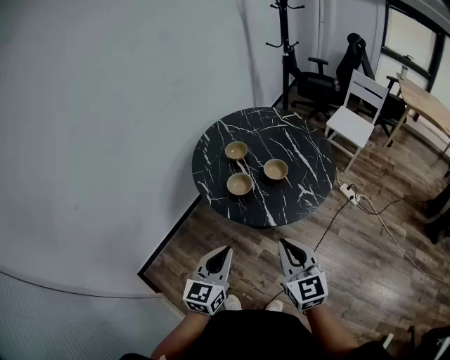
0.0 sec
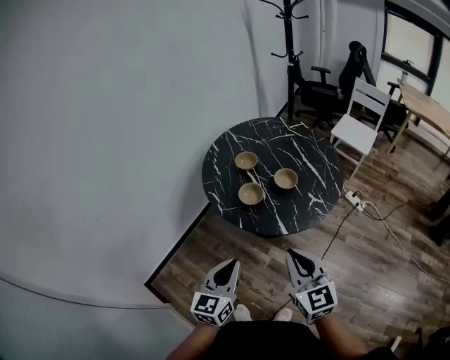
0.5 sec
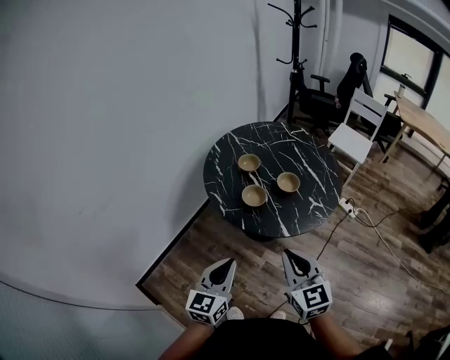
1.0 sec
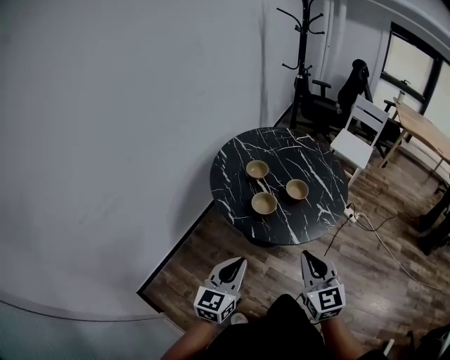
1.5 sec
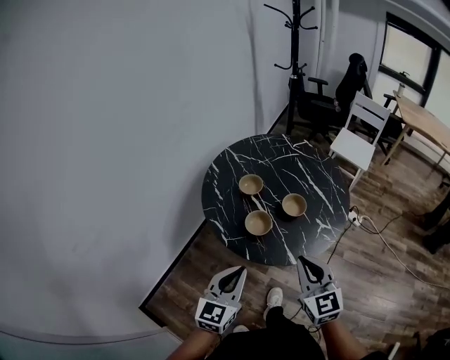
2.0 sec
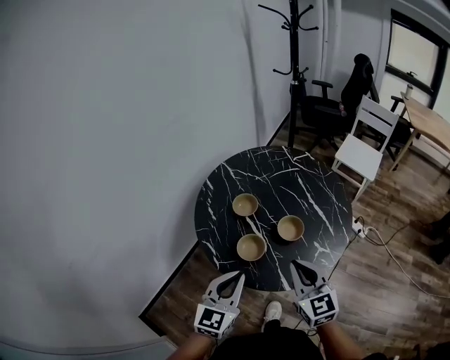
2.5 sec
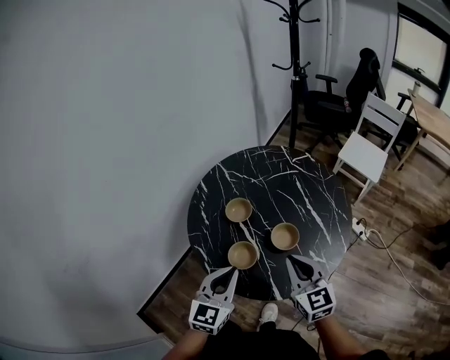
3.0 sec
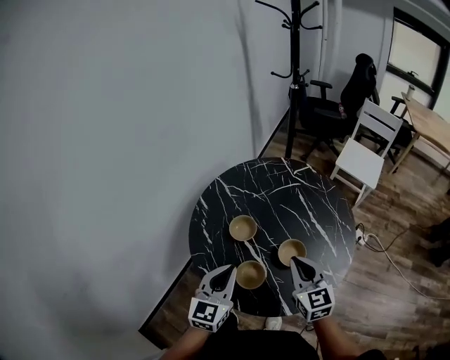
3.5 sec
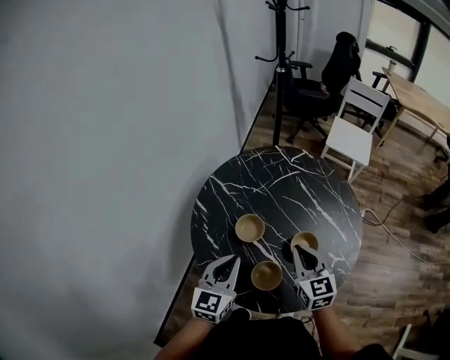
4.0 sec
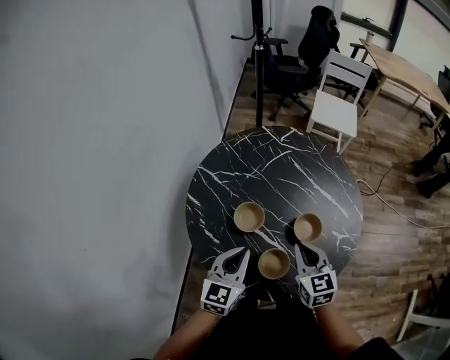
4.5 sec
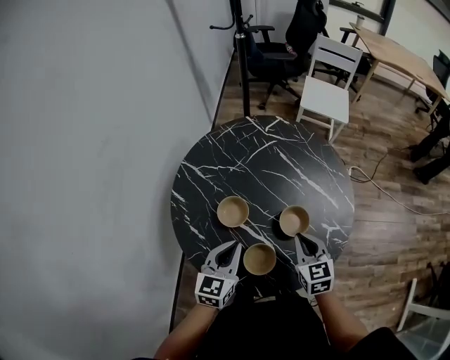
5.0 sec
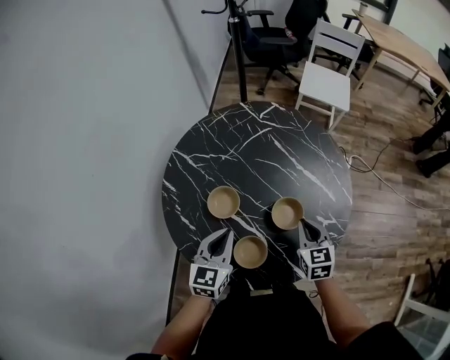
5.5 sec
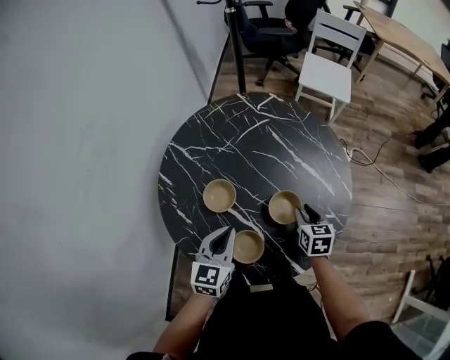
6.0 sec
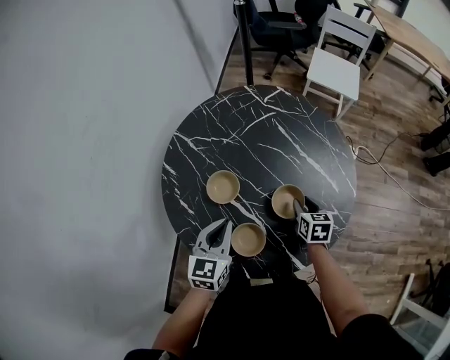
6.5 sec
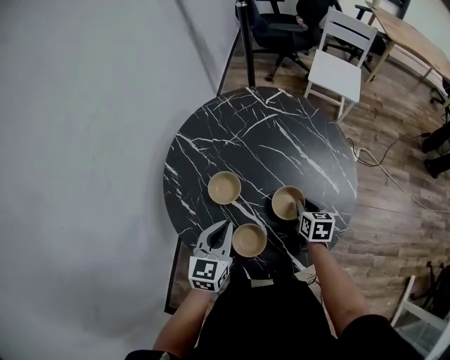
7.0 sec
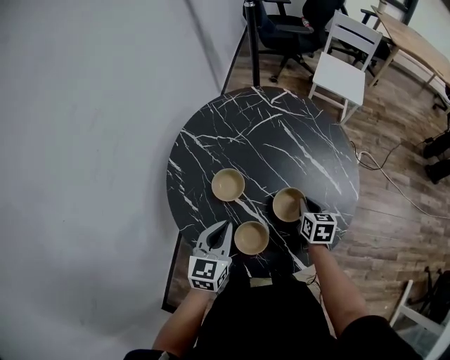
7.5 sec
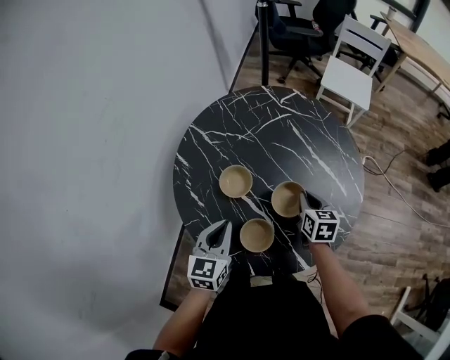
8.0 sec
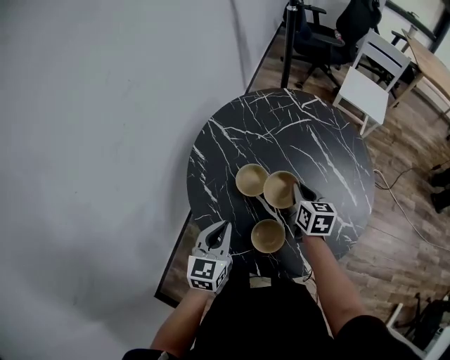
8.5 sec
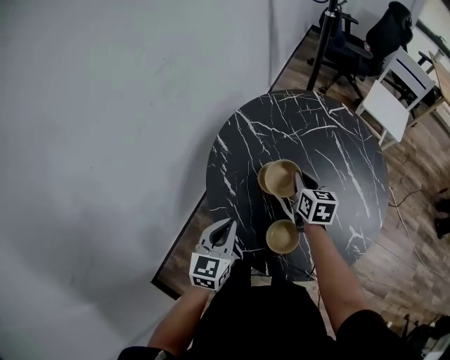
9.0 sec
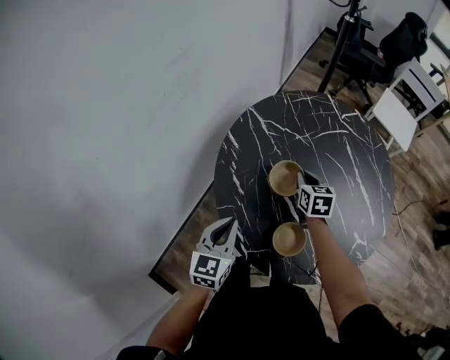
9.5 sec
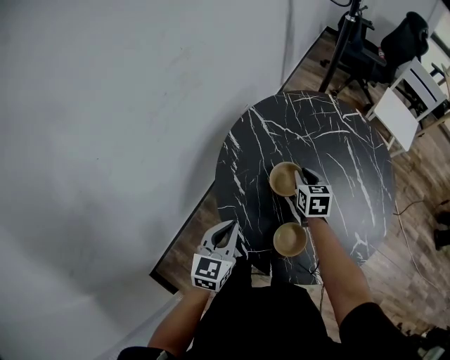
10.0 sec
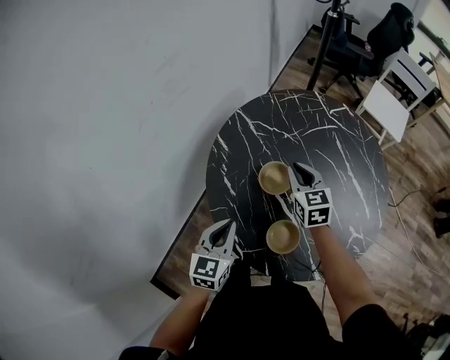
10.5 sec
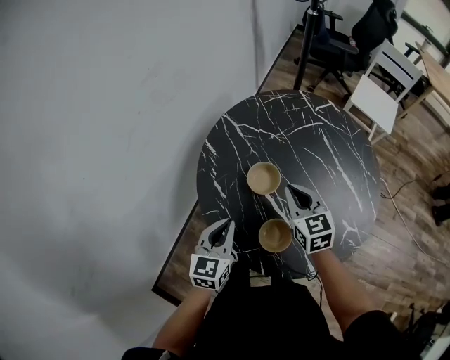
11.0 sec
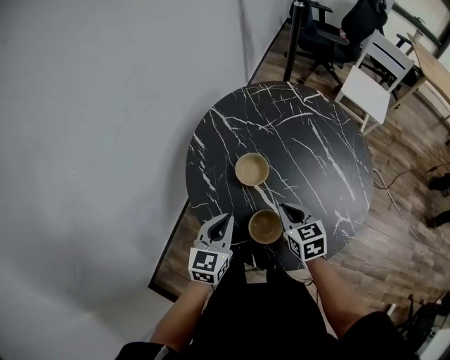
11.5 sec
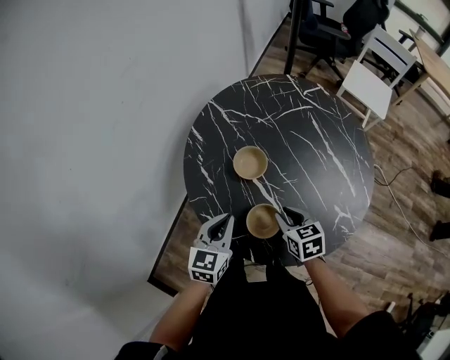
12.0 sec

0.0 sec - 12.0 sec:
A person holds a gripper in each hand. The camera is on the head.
0.0 sec - 2.0 sec: Both grippers move forward and to the left, about 10 cm.
2.0 sec - 4.0 sec: Both grippers move forward, some 30 cm.
4.0 sec - 6.0 sec: The right gripper travels downward and to the right by about 20 cm, rotates some 30 degrees, and opens; the left gripper is displaced downward and to the right by approximately 10 cm.
6.0 sec - 8.0 sec: The left gripper ends up about 5 cm from where it was, while the right gripper shifts by approximately 5 cm, and closes its fingers.
8.0 sec - 10.0 sec: The right gripper heads to the left and forward, covering approximately 20 cm, and swivels some 20 degrees; the left gripper shifts approximately 10 cm to the left.
10.0 sec - 12.0 sec: The right gripper is displaced backward by approximately 20 cm. Meanwhile the left gripper heads to the right, covering about 10 cm.

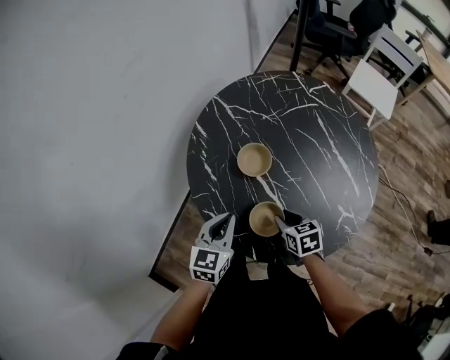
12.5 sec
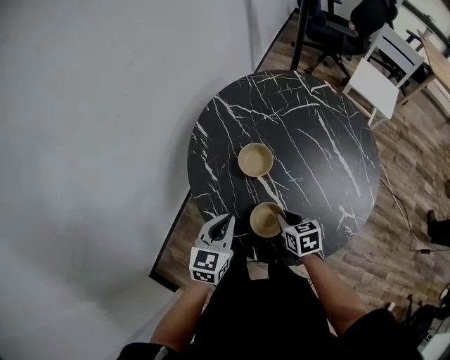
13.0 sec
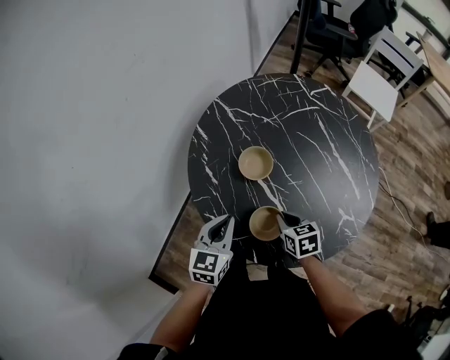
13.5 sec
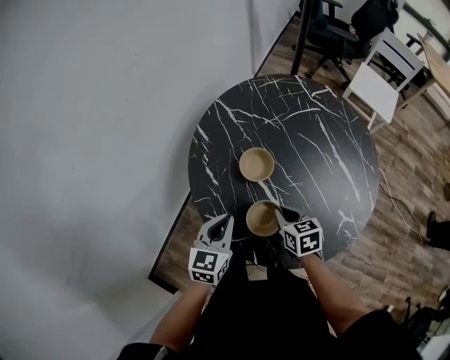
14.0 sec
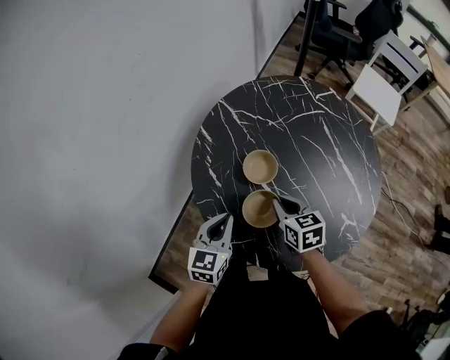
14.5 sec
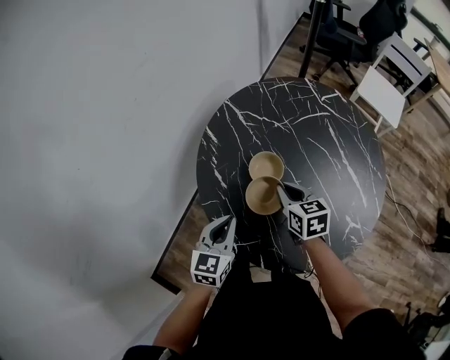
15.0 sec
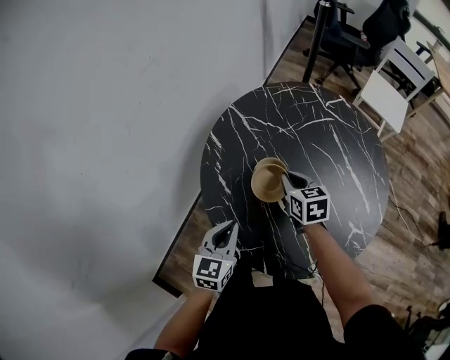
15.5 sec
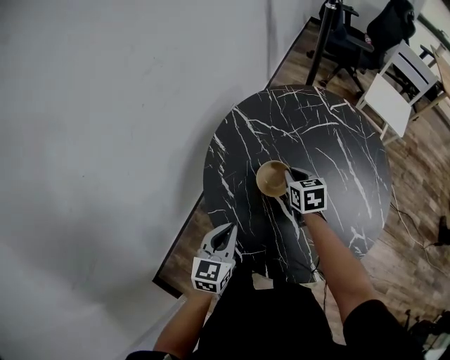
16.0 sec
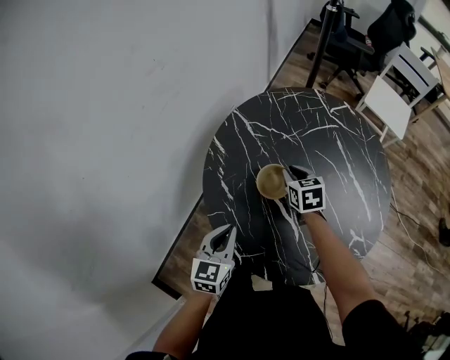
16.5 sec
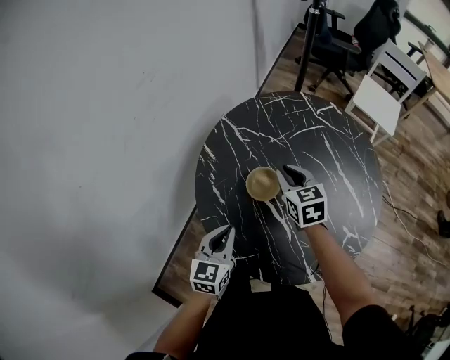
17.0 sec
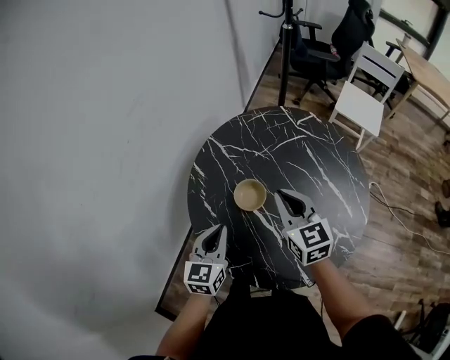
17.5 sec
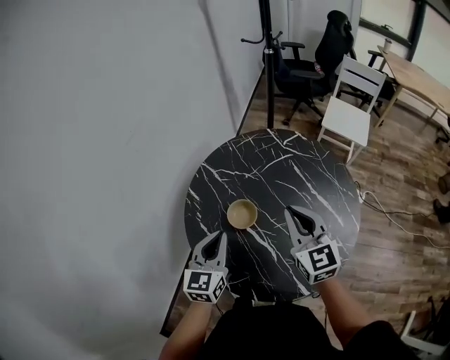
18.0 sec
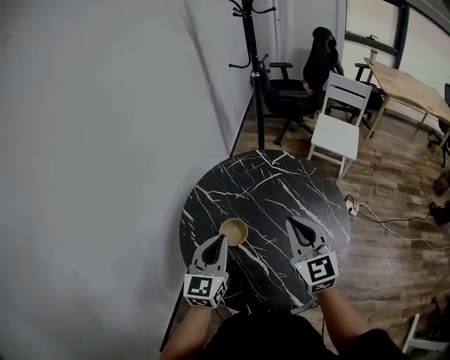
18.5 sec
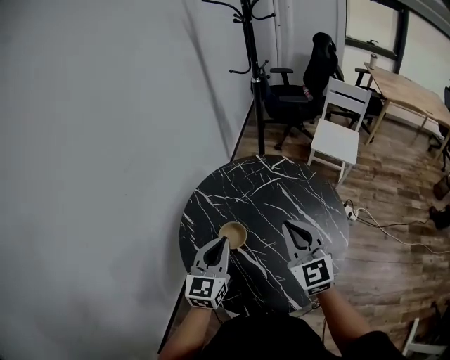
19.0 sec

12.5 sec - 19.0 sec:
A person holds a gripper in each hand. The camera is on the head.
12.5 sec - 14.5 sec: The right gripper shifts approximately 10 cm forward and upward, and closes.
14.5 sec - 17.0 sec: The right gripper heads forward and upward, covering roughly 15 cm.
17.0 sec - 19.0 sec: The right gripper is displaced upward, to the right and backward by roughly 25 cm, and changes its angle by some 30 degrees. Meanwhile the left gripper moves upward, to the right and forward, some 20 cm, and swivels roughly 20 degrees.

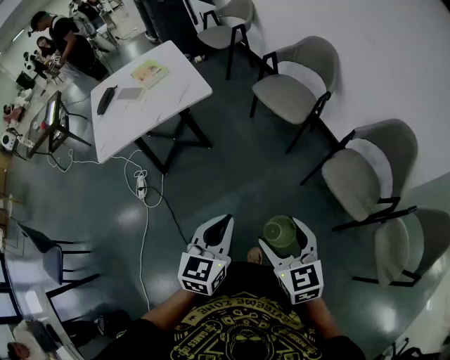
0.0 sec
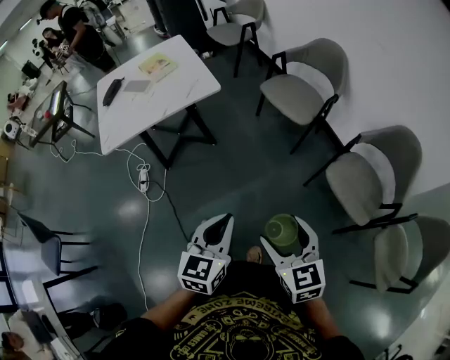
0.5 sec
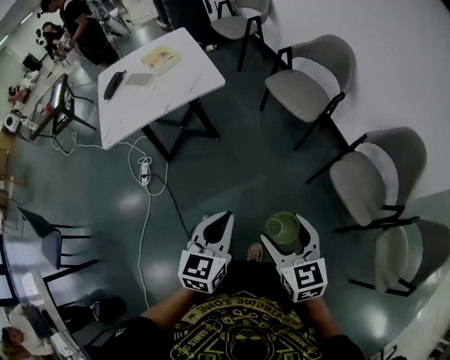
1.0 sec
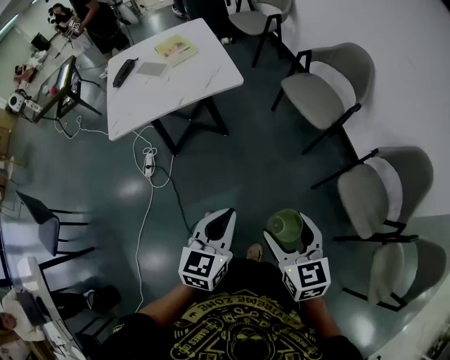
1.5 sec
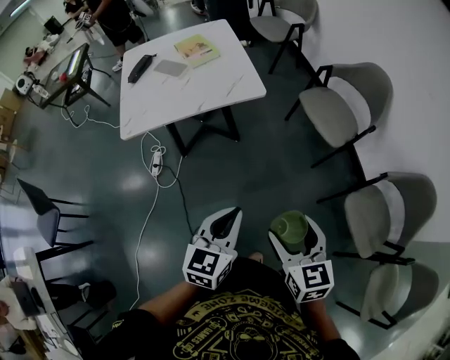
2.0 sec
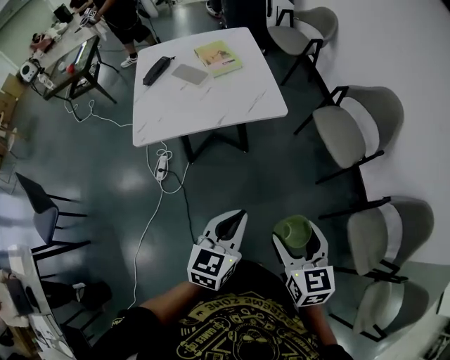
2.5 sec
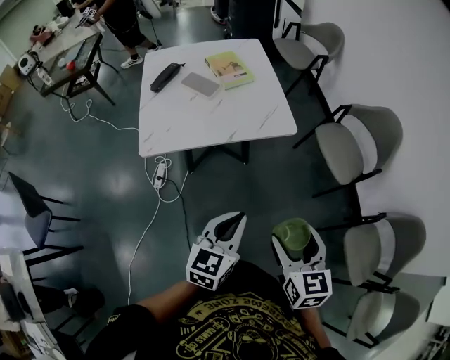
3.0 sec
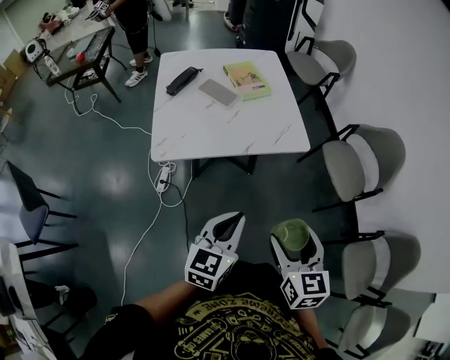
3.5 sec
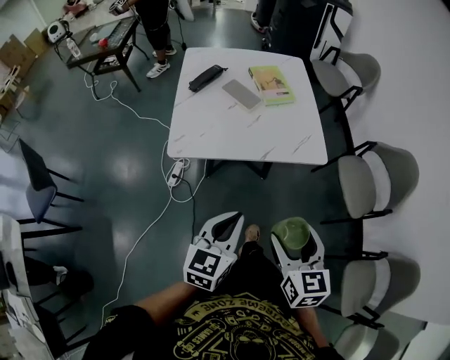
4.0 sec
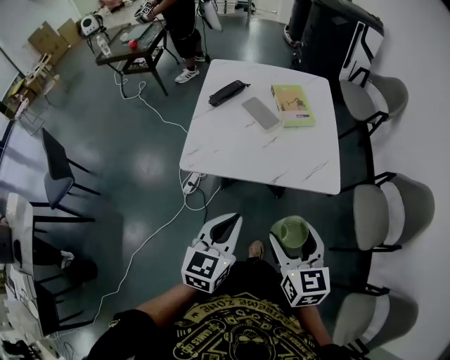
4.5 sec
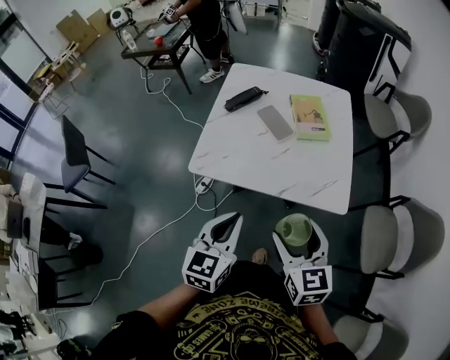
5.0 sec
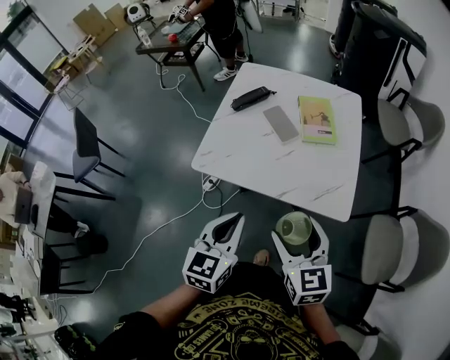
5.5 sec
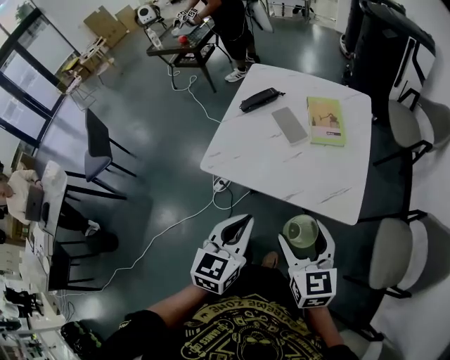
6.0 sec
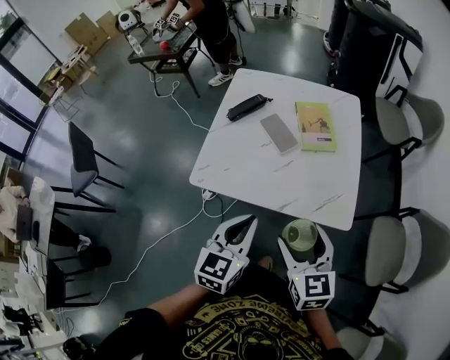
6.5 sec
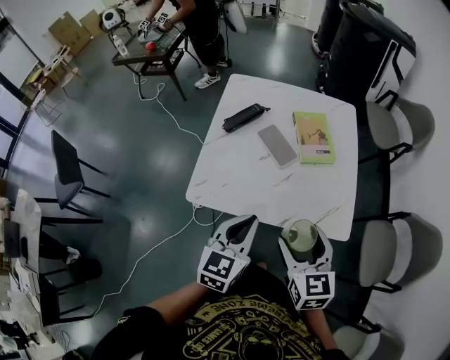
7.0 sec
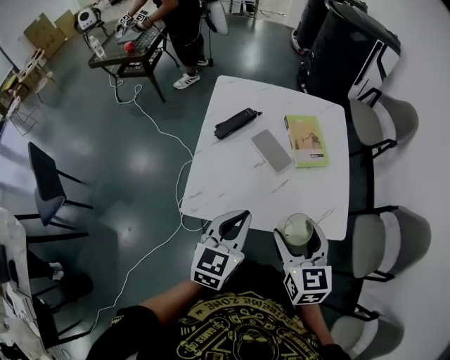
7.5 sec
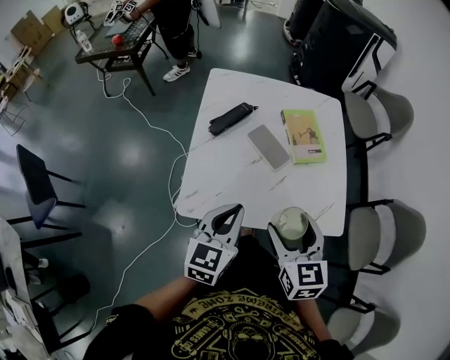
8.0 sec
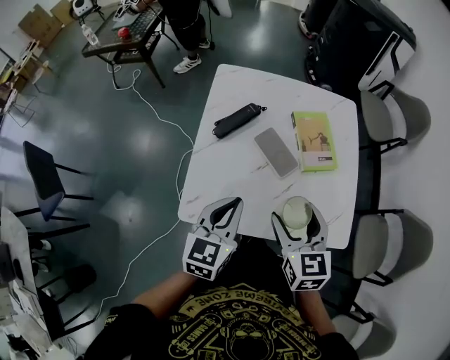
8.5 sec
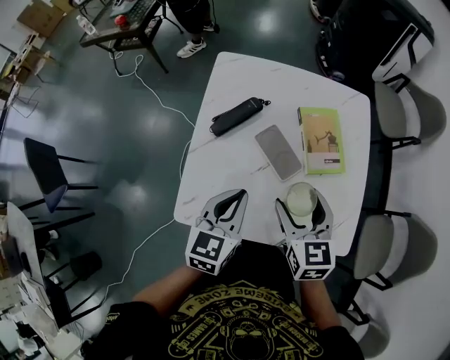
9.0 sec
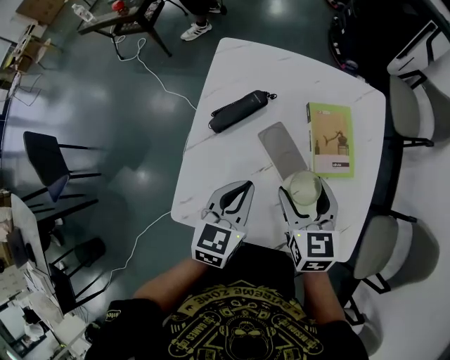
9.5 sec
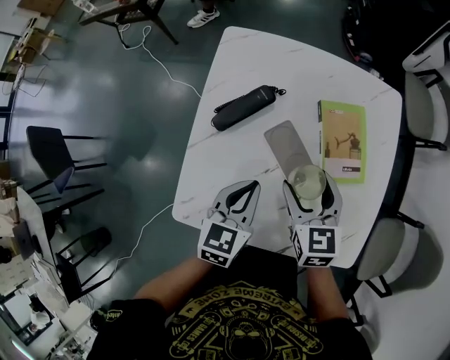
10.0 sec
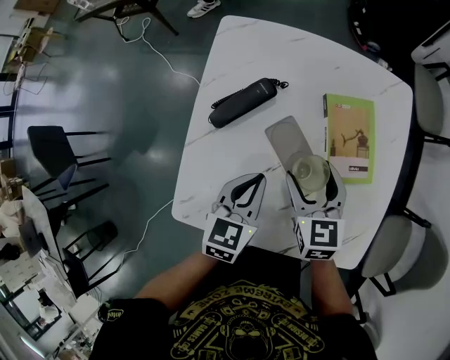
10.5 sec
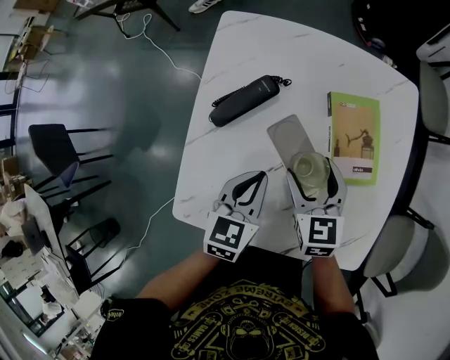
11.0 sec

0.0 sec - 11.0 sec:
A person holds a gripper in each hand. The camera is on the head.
0.0 sec - 2.0 sec: The right gripper shifts some 15 cm forward and to the left, while the left gripper heads to the left and forward, covering roughly 15 cm.
2.0 sec - 3.5 sec: The two grippers go approximately 25 cm to the left and forward.
3.5 sec - 5.5 sec: The right gripper ends up about 20 cm from where it was, and swivels roughly 30 degrees; the left gripper shifts by approximately 15 cm, and turns by some 30 degrees.
5.5 sec - 7.5 sec: The right gripper travels forward and to the left by some 15 cm, while the left gripper is displaced forward by approximately 15 cm.
7.5 sec - 9.0 sec: Both grippers move forward, about 15 cm.
9.0 sec - 11.0 sec: Both grippers travel together downward and forward, roughly 15 cm.
